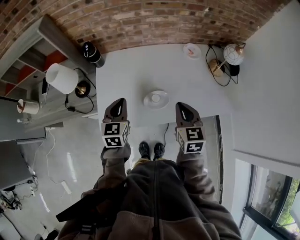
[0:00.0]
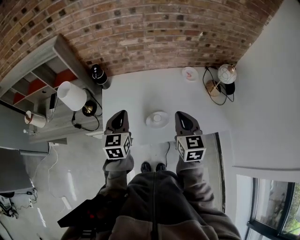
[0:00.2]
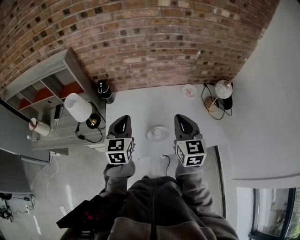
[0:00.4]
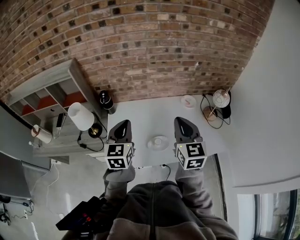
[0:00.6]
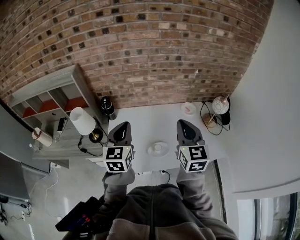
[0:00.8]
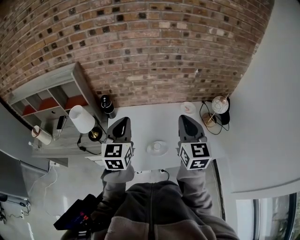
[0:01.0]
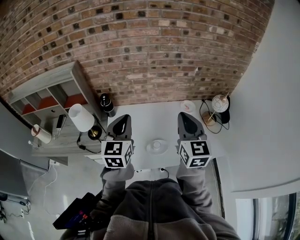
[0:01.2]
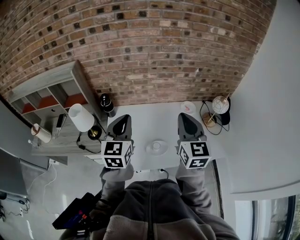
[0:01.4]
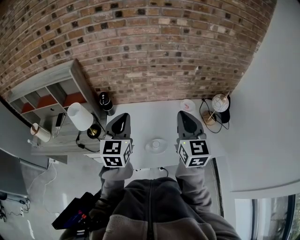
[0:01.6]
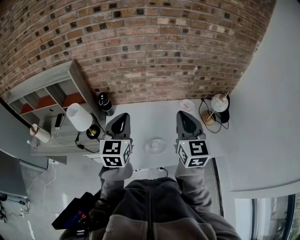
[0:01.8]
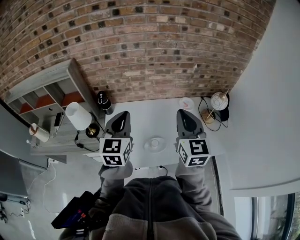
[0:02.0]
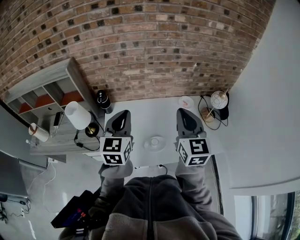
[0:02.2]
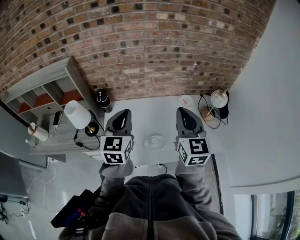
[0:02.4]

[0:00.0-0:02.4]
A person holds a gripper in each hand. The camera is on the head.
0.0 to 1.2 s: Both grippers move upward, about 25 cm. The right gripper rotates some 30 degrees.
1.2 to 2.4 s: The grippers move only a little.

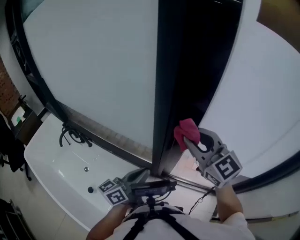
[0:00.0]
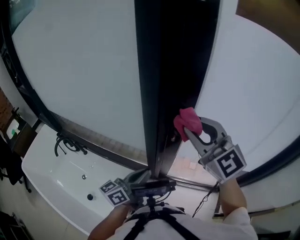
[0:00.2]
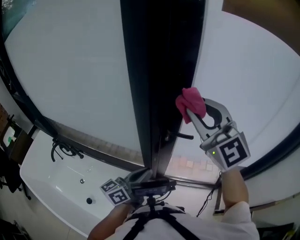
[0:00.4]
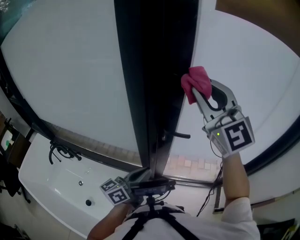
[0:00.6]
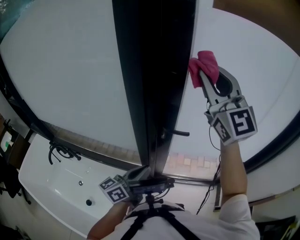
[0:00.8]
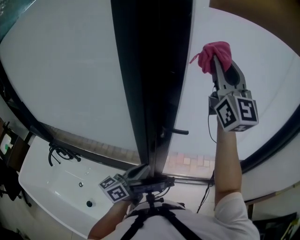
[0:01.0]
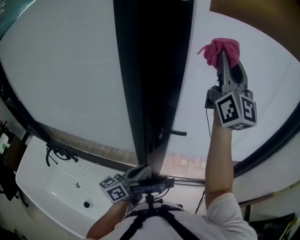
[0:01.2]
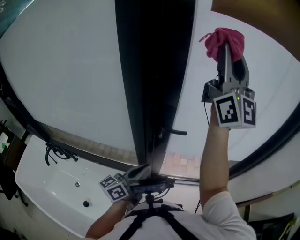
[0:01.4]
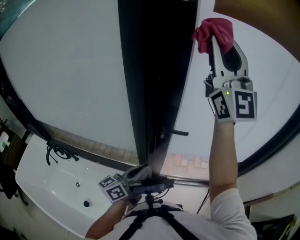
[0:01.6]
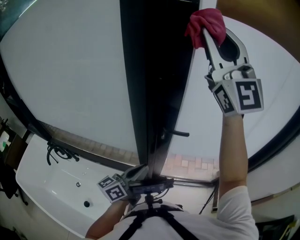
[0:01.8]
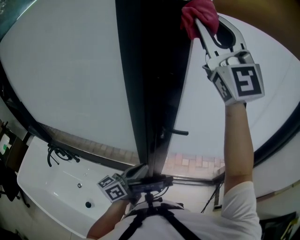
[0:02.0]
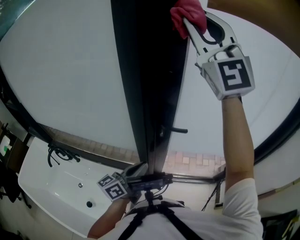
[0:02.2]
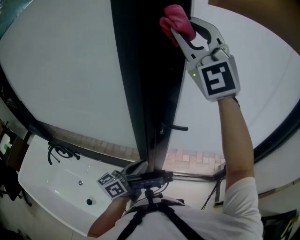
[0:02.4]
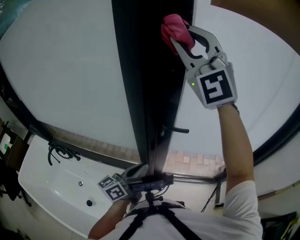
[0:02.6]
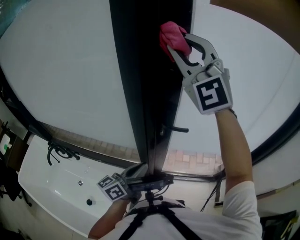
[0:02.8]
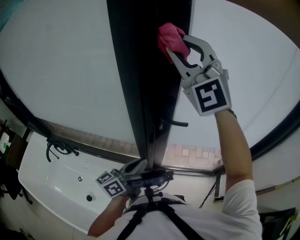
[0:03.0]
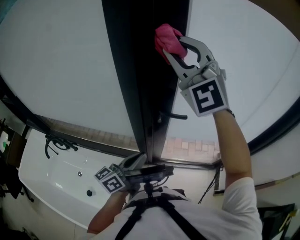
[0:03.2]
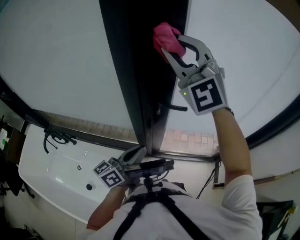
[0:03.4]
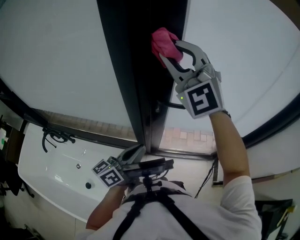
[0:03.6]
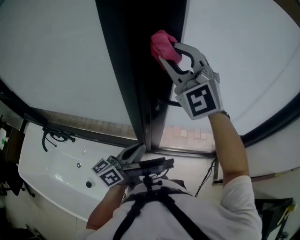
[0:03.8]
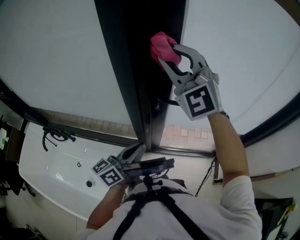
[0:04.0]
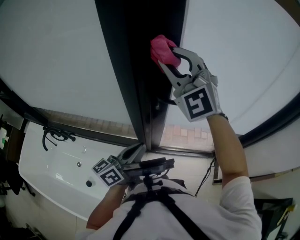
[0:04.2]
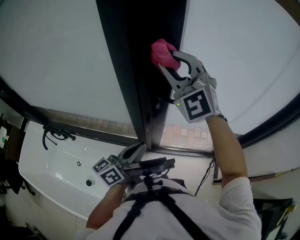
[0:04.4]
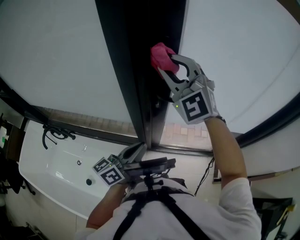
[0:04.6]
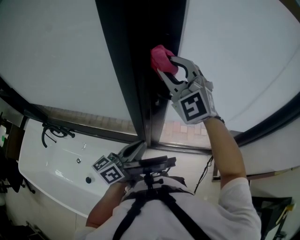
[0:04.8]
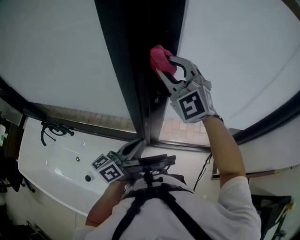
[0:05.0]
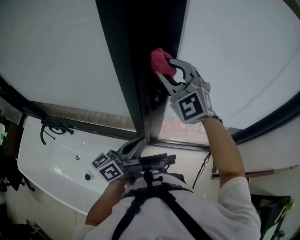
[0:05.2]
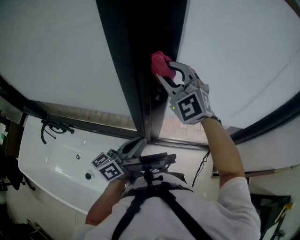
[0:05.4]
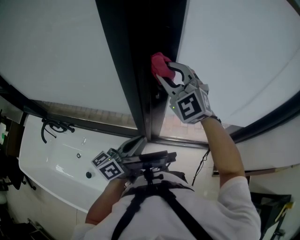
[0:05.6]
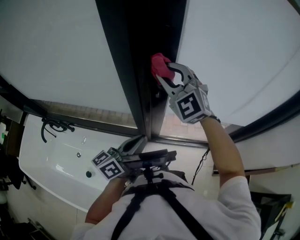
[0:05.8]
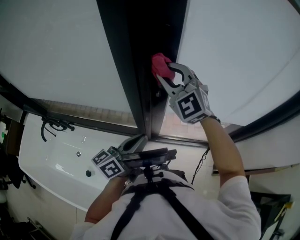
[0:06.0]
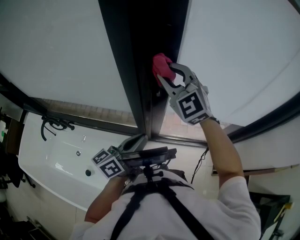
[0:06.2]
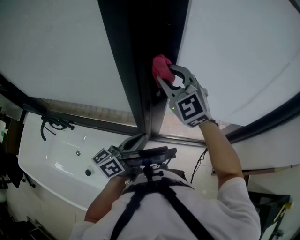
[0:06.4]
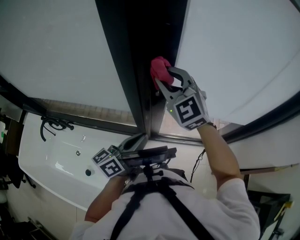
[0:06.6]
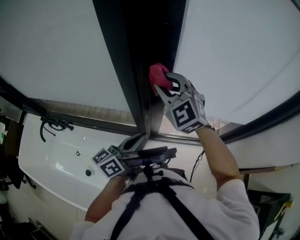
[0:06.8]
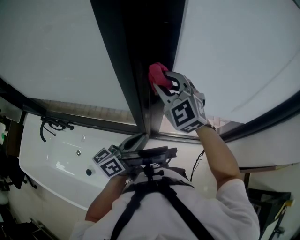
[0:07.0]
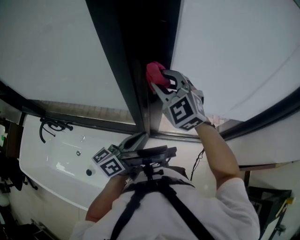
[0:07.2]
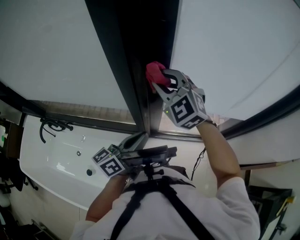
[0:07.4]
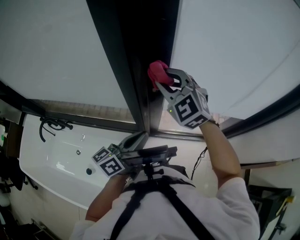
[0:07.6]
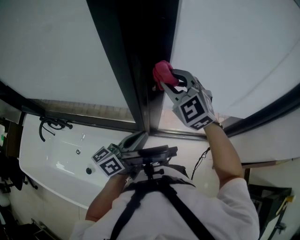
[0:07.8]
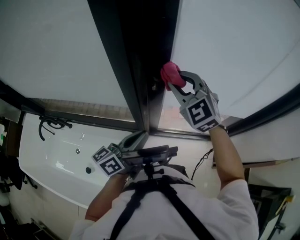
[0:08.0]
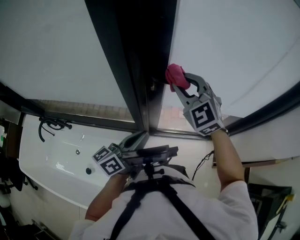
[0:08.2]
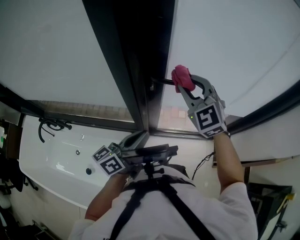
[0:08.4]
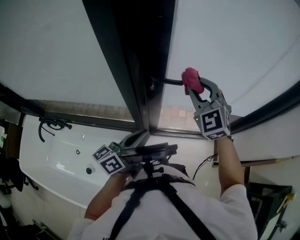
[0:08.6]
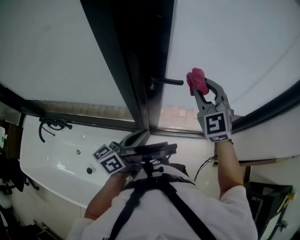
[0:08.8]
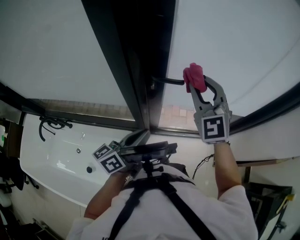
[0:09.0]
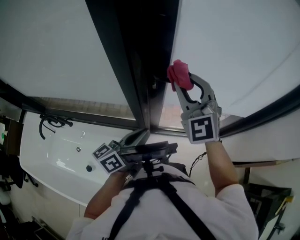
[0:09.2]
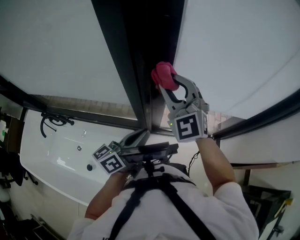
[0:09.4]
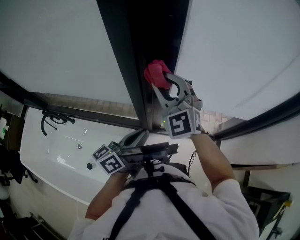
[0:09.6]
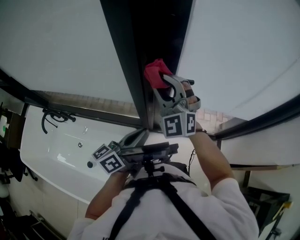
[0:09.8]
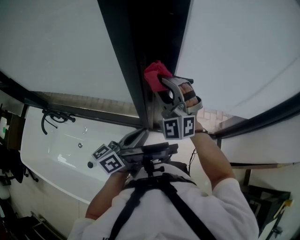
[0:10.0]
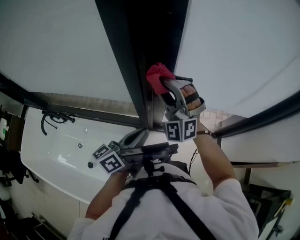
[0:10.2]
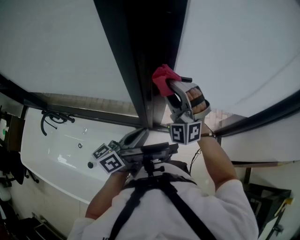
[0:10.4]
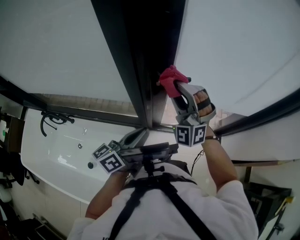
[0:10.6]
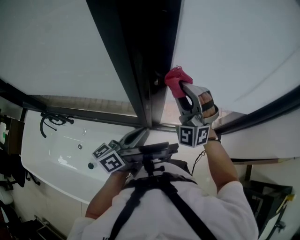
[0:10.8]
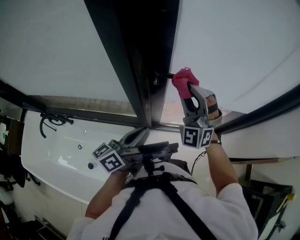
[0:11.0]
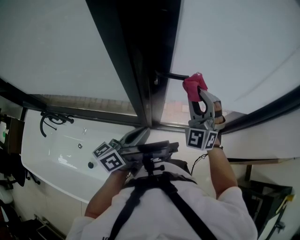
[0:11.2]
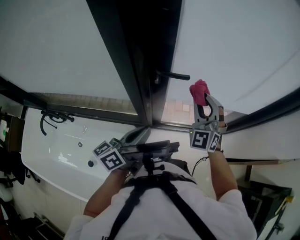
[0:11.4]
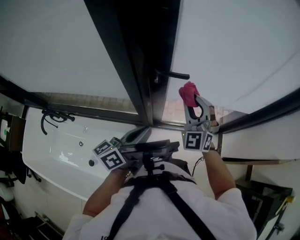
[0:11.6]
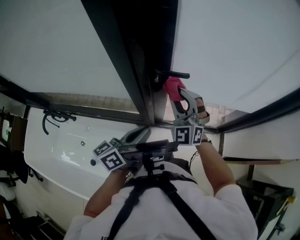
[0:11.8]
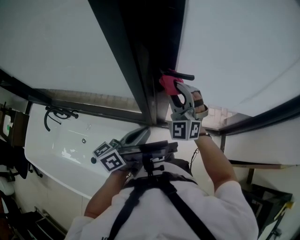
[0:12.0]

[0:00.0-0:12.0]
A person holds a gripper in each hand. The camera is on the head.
0.0 to 1.6 s: The left gripper ends up roughly 5 cm from where it was, while the right gripper shifts roughly 30 cm upward, and points its fingers approximately 50 degrees further upward.
1.6 to 3.0 s: The right gripper is displaced downward and to the left by roughly 10 cm, and rotates some 40 degrees.
3.0 to 4.4 s: The right gripper heads downward, covering roughly 15 cm.
4.4 to 6.0 s: The right gripper moves downward, roughly 10 cm.
6.0 to 7.6 s: There are only small adjustments of the grippers.
7.6 to 9.0 s: The right gripper is displaced to the right by about 15 cm.
9.0 to 10.4 s: The right gripper travels to the left and downward by approximately 10 cm, and changes its angle by about 30 degrees.
10.4 to 12.0 s: The right gripper reaches some 15 cm to the right, then returns.

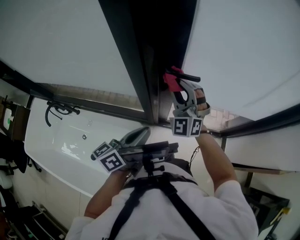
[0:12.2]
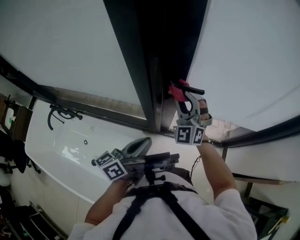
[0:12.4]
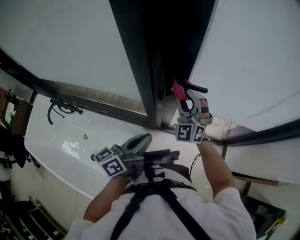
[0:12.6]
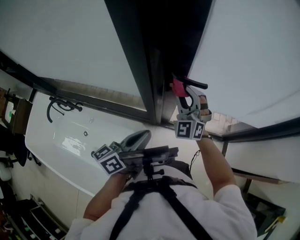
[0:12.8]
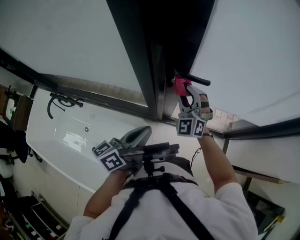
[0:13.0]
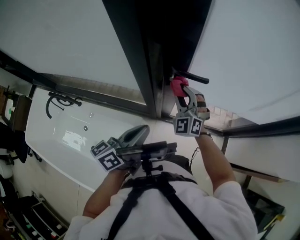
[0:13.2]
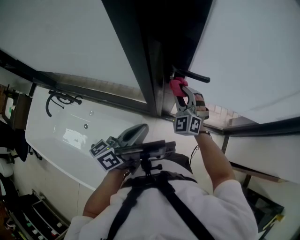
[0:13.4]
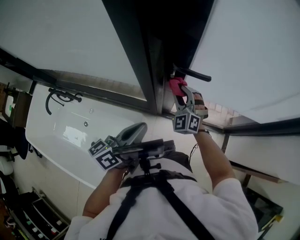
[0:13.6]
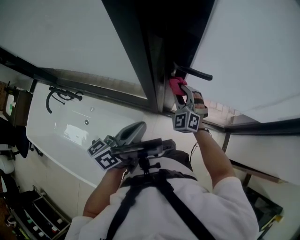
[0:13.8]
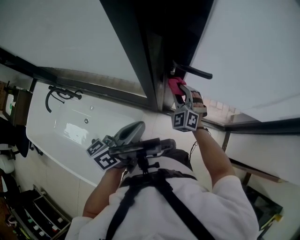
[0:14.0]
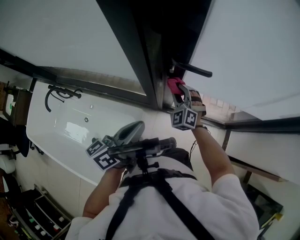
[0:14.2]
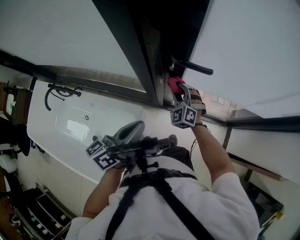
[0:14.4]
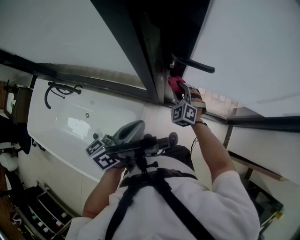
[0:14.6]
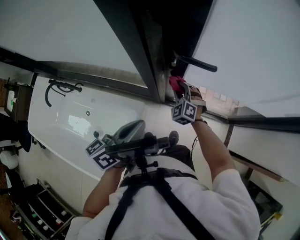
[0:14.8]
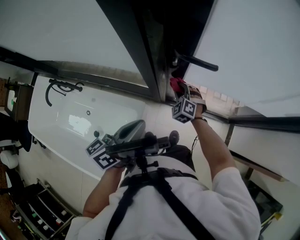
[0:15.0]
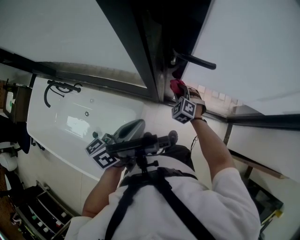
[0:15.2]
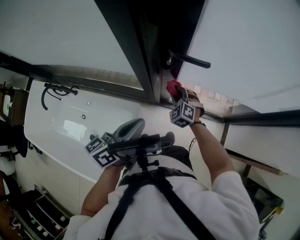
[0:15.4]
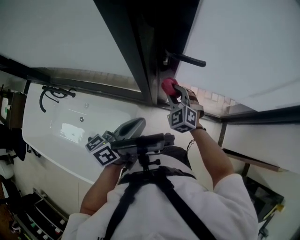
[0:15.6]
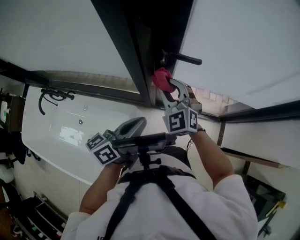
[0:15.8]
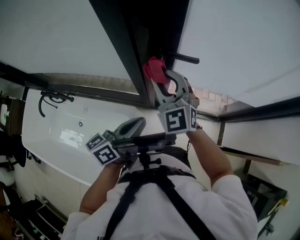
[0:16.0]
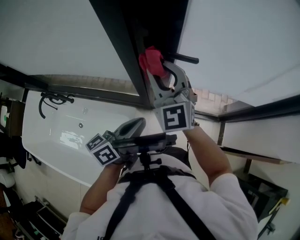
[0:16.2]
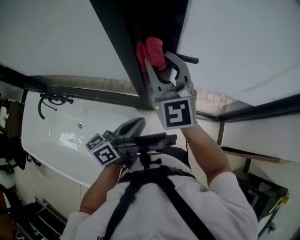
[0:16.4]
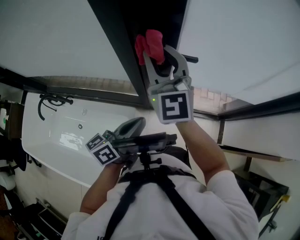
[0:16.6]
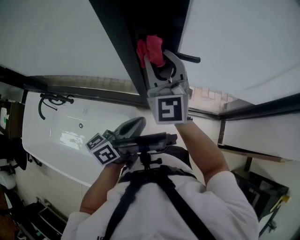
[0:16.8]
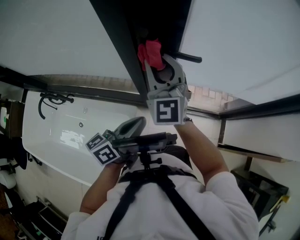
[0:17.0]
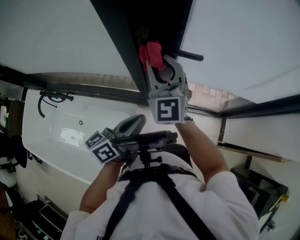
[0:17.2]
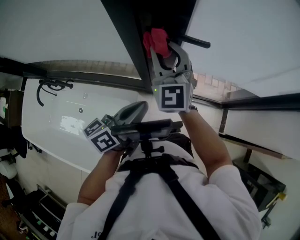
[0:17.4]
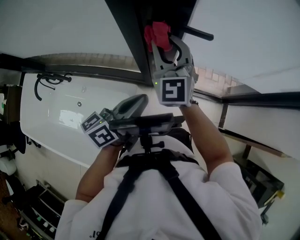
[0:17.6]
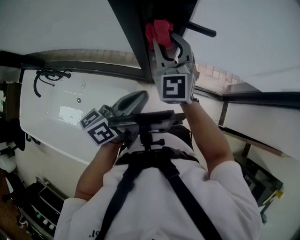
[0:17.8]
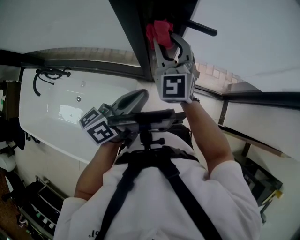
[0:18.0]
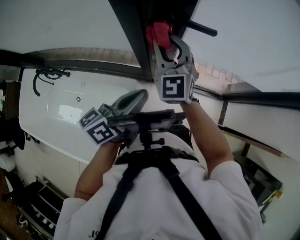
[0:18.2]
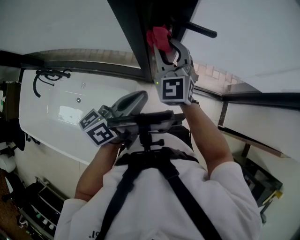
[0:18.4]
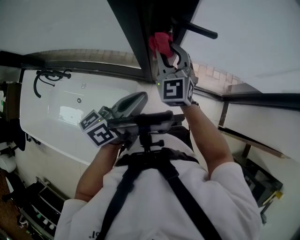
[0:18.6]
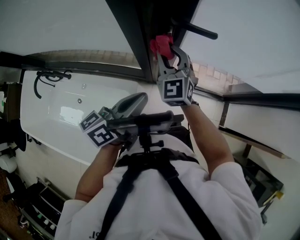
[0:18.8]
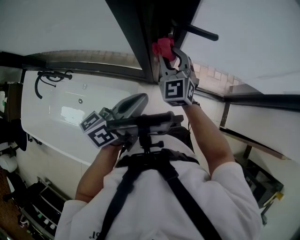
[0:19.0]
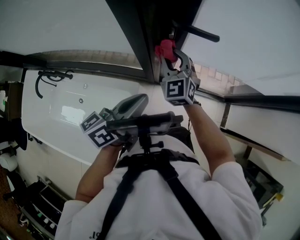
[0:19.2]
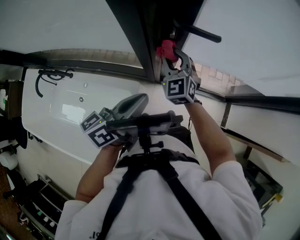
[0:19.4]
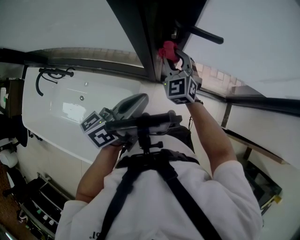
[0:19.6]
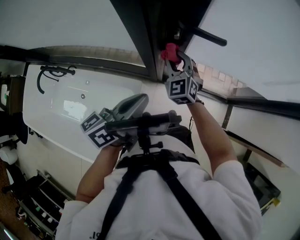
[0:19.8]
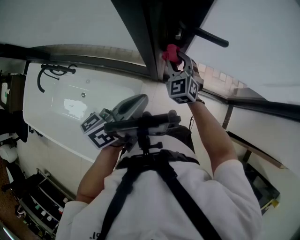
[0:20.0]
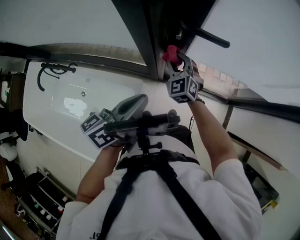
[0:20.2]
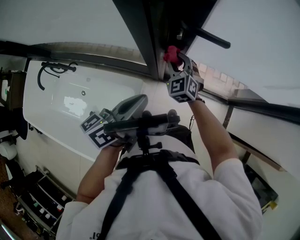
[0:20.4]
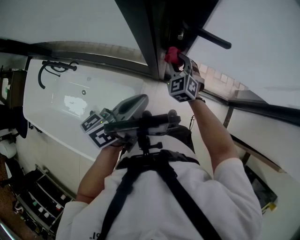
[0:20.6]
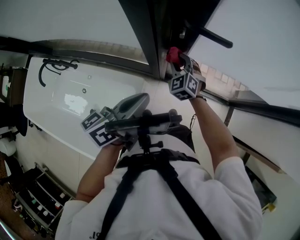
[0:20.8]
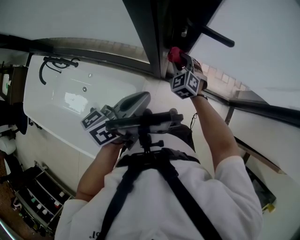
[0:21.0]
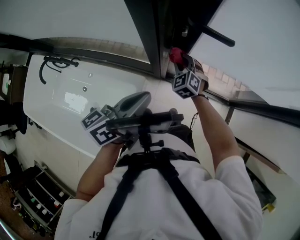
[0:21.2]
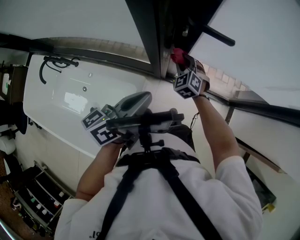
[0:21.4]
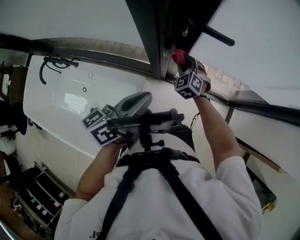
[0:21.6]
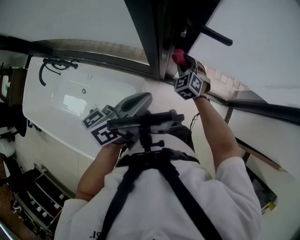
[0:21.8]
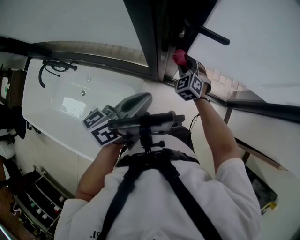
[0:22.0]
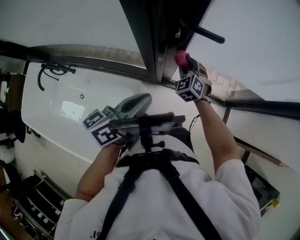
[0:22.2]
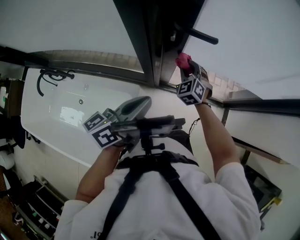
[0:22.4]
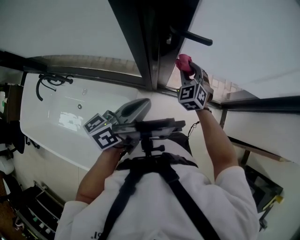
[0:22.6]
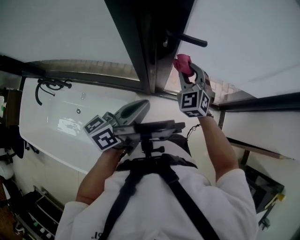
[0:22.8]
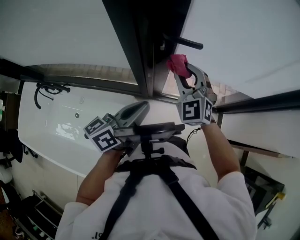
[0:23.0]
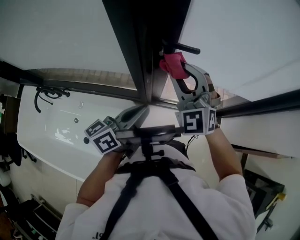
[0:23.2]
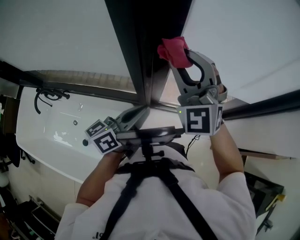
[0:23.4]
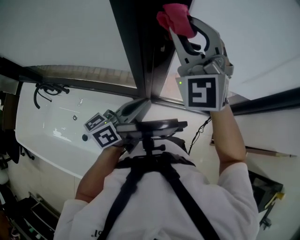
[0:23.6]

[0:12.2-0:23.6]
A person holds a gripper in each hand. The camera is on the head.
12.2 to 13.6 s: The right gripper goes some 15 cm downward.
13.6 to 15.0 s: The right gripper moves downward, approximately 15 cm, and turns by about 20 degrees.
15.0 to 16.4 s: The right gripper goes approximately 35 cm upward, and angles its fingers upward, by some 50 degrees.
16.4 to 17.8 s: The right gripper goes approximately 10 cm downward.
17.8 to 19.4 s: The right gripper travels downward by about 10 cm.
19.4 to 20.8 s: The right gripper goes roughly 10 cm downward.
20.8 to 22.2 s: The right gripper moves to the right, roughly 5 cm.
22.2 to 23.6 s: The right gripper heads upward, covering roughly 40 cm, and tilts its fingers approximately 40 degrees upward.
